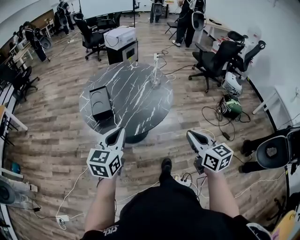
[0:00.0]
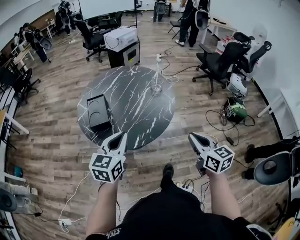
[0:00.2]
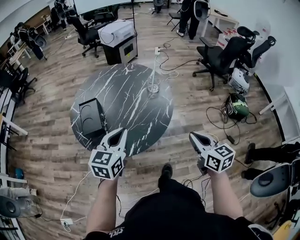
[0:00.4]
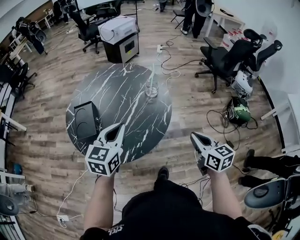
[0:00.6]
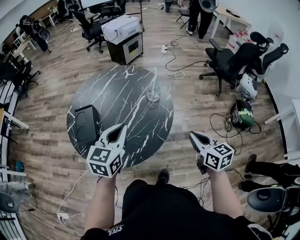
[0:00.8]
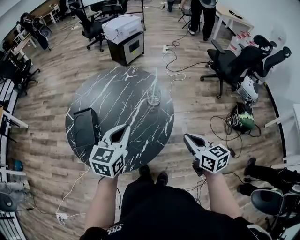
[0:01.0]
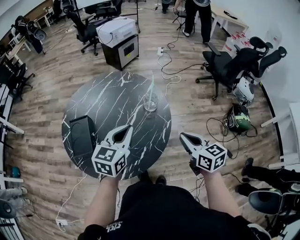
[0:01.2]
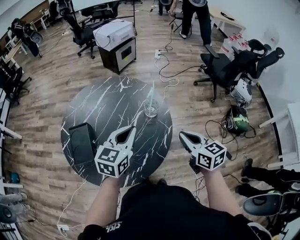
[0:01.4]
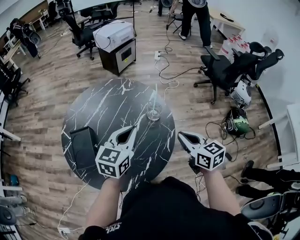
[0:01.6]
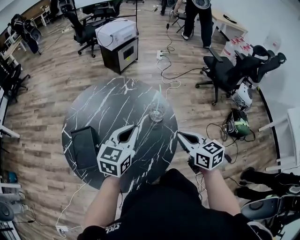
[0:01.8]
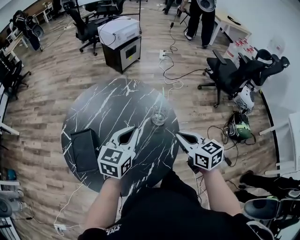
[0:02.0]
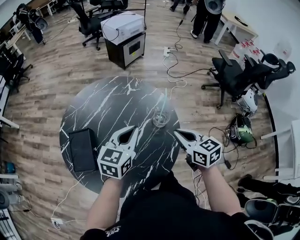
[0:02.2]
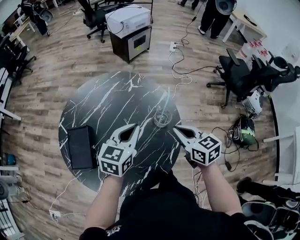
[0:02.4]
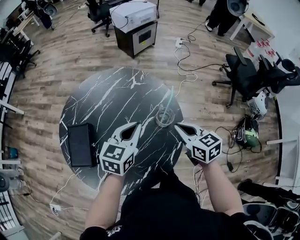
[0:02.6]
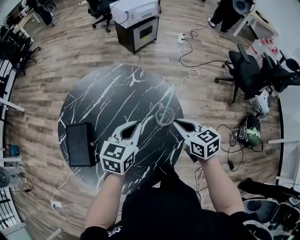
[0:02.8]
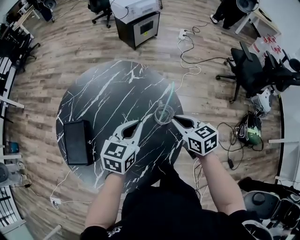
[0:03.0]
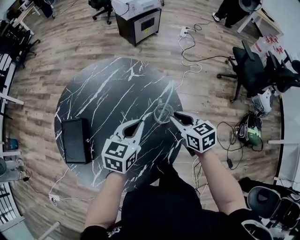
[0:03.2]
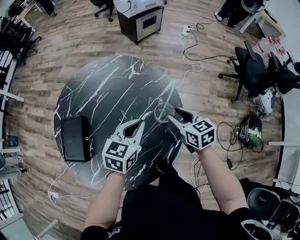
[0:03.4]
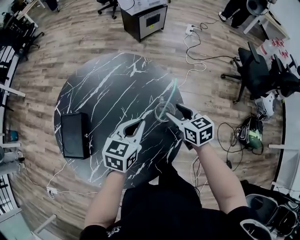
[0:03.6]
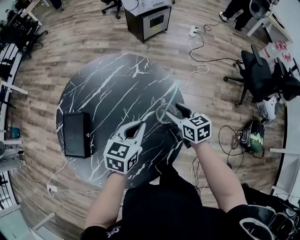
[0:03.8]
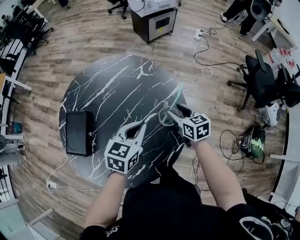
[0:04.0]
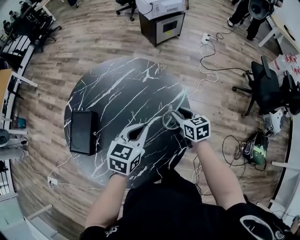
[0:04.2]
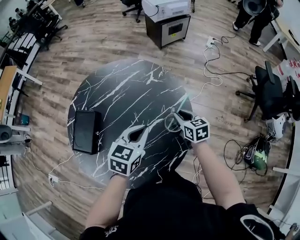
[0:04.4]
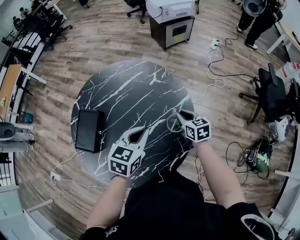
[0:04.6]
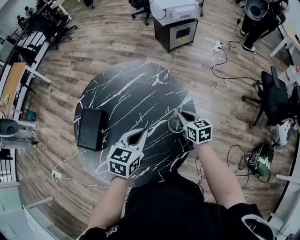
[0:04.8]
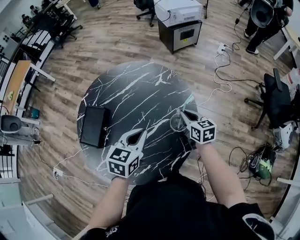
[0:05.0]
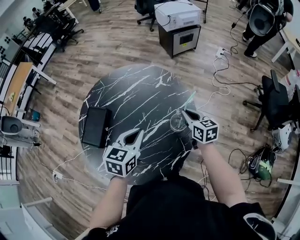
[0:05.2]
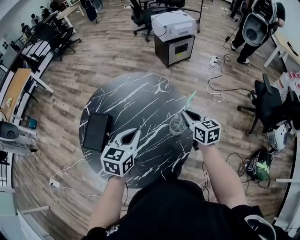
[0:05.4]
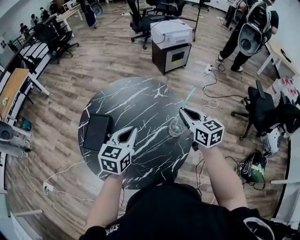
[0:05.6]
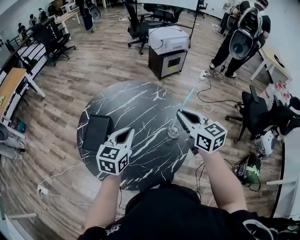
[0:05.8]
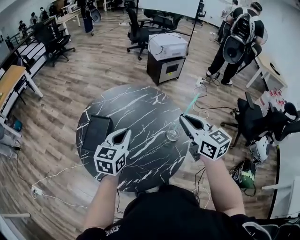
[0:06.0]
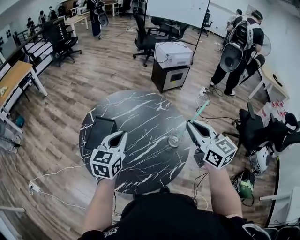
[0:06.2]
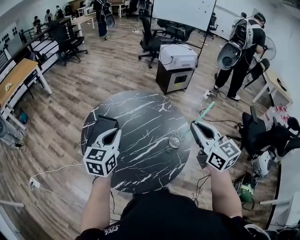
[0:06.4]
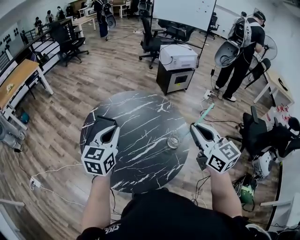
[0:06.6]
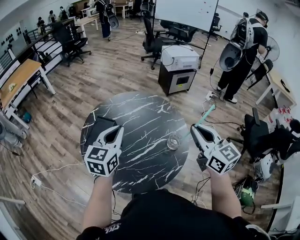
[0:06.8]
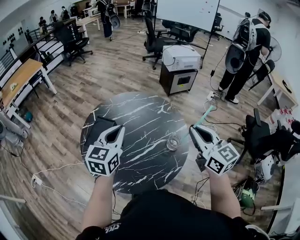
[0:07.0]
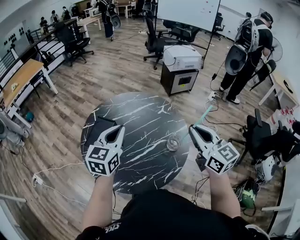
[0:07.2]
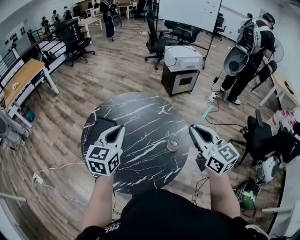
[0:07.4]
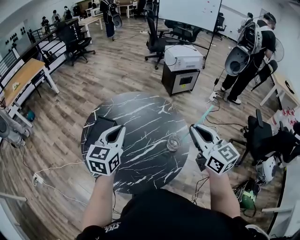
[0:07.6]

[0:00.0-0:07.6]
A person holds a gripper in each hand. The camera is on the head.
0:00.0 to 0:01.6: Both grippers are carried forward, approximately 40 cm.
0:01.6 to 0:03.0: Both grippers move forward and downward, roughly 20 cm.
0:03.0 to 0:04.6: The right gripper shifts about 10 cm forward and downward, and opens, then closes once more.
0:04.6 to 0:06.0: The left gripper goes about 20 cm to the left and upward. Meanwhile the right gripper moves upward, about 30 cm, and changes its angle by about 30 degrees.
0:06.0 to 0:07.6: The right gripper travels to the right by some 5 cm. The left gripper moves upward, roughly 5 cm.

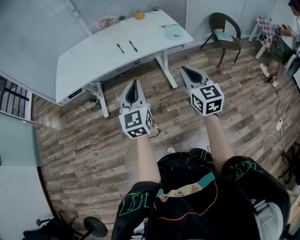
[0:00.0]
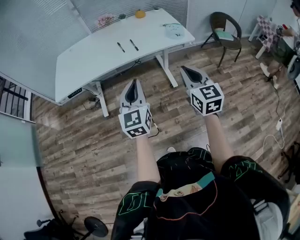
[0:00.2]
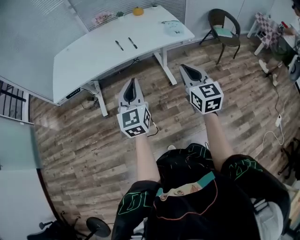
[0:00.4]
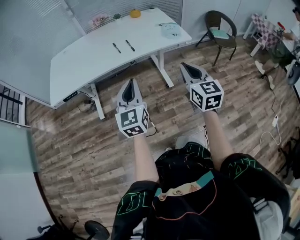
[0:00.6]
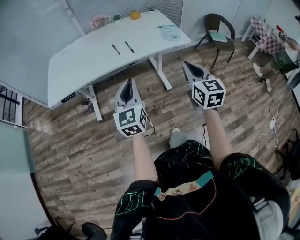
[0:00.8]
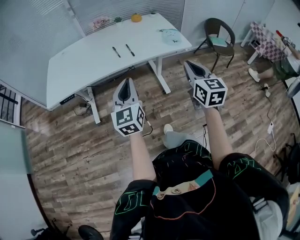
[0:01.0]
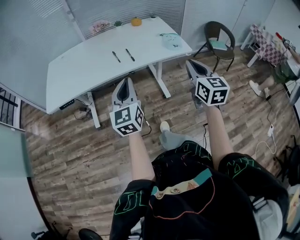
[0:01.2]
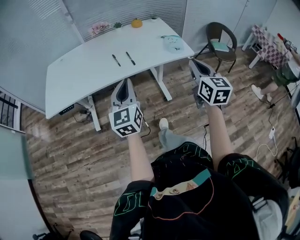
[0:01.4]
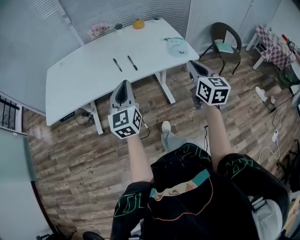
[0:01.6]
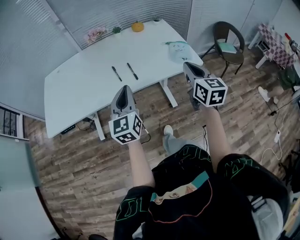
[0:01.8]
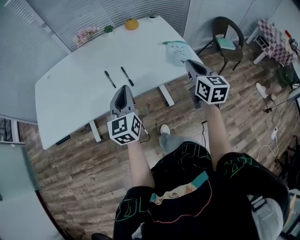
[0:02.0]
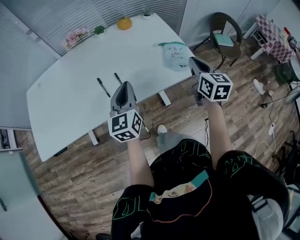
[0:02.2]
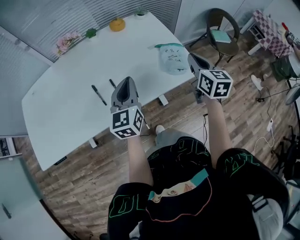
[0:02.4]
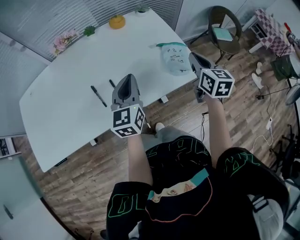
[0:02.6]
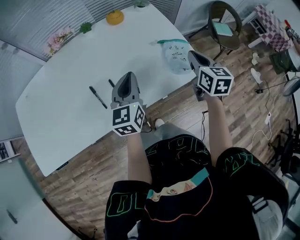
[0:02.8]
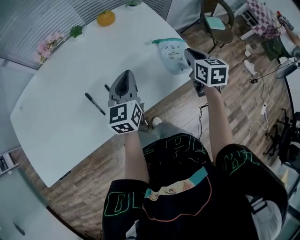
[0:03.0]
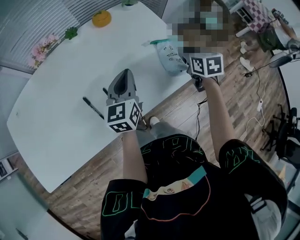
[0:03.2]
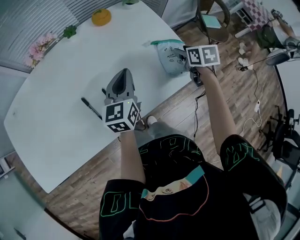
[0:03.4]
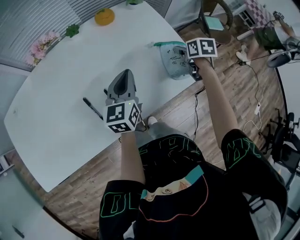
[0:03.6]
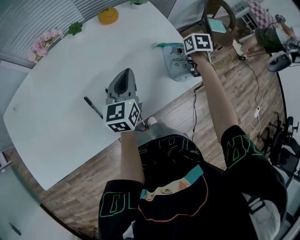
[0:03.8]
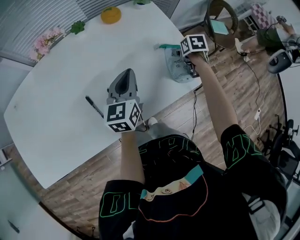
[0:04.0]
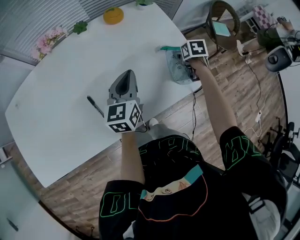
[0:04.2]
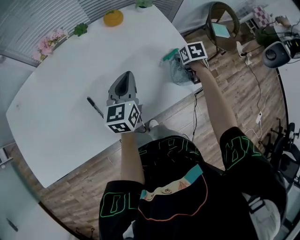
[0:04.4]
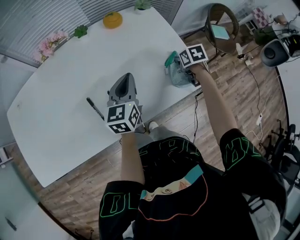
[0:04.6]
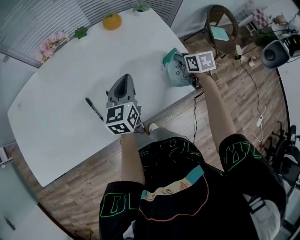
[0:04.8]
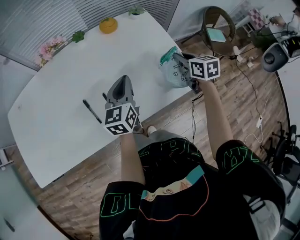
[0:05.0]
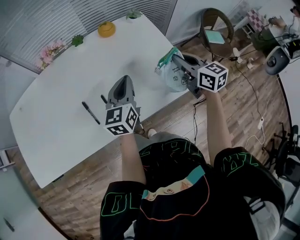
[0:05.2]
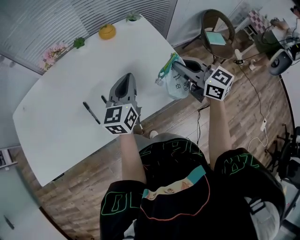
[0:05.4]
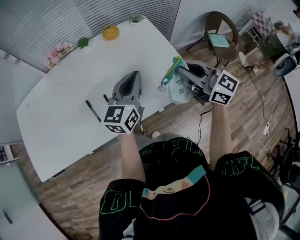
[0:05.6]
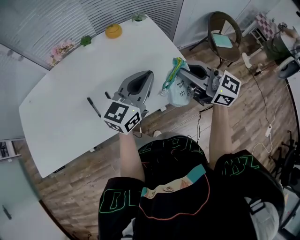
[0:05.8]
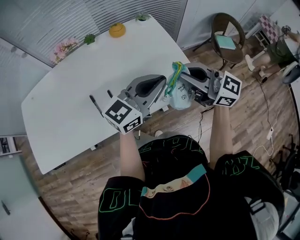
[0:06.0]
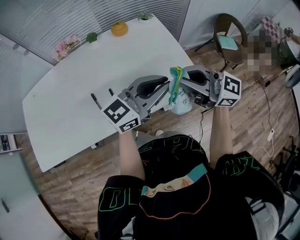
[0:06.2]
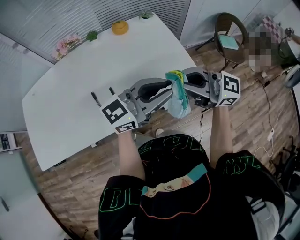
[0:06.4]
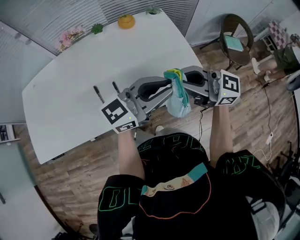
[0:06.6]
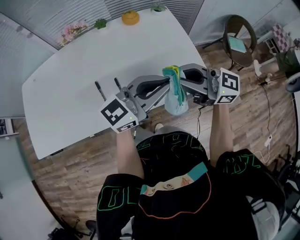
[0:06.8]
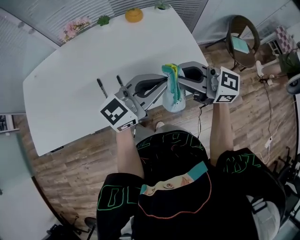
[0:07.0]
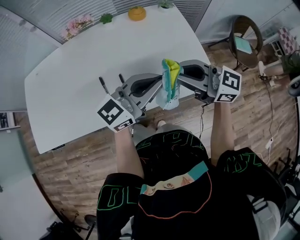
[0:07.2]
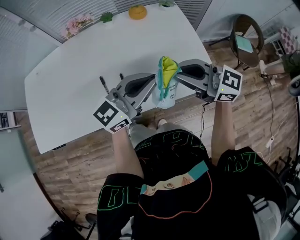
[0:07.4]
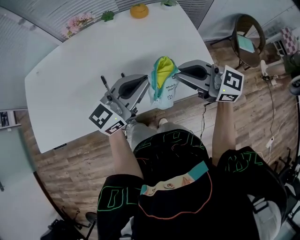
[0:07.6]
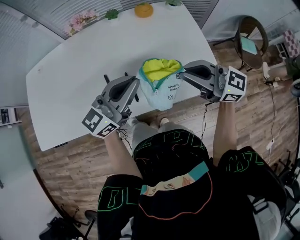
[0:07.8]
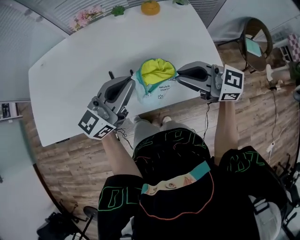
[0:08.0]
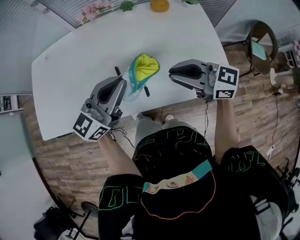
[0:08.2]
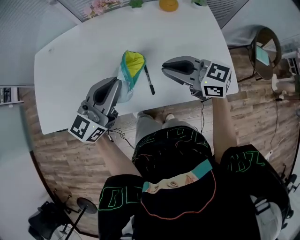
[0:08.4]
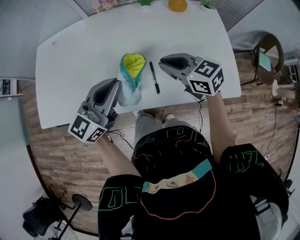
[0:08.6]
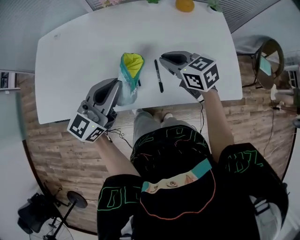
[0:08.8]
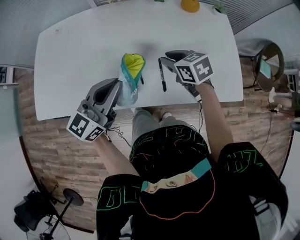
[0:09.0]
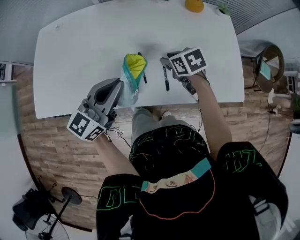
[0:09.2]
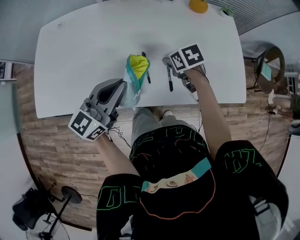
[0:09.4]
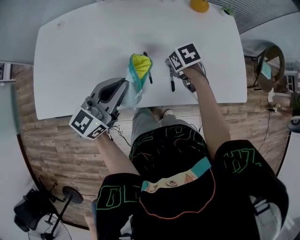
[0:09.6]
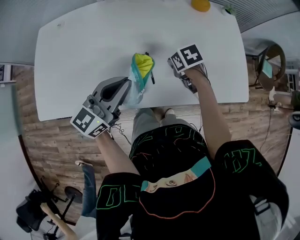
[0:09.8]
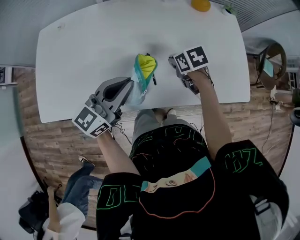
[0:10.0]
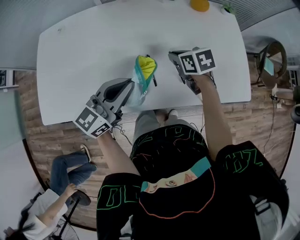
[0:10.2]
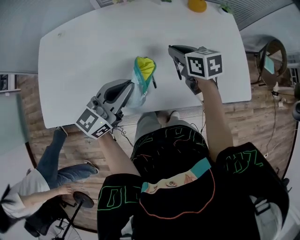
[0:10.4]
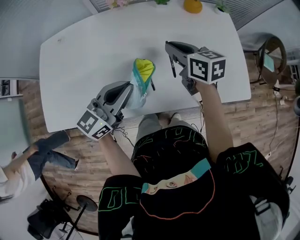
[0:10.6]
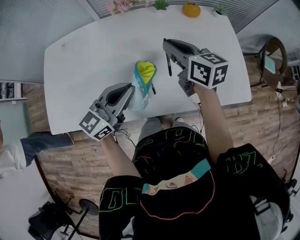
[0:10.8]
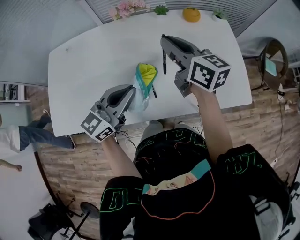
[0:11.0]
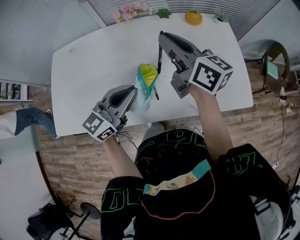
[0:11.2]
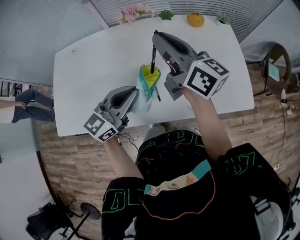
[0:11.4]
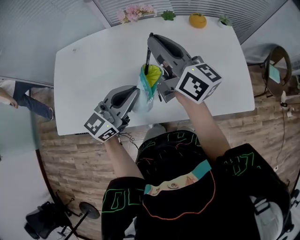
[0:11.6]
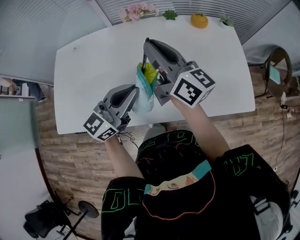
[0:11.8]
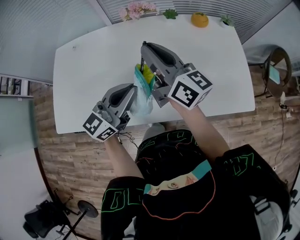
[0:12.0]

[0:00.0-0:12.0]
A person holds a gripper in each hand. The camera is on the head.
0:00.0 to 0:01.6: Both grippers travel together forward, approximately 20 cm.
0:01.6 to 0:03.0: The right gripper is displaced forward and downward by roughly 35 cm, and changes its angle by some 30 degrees; the left gripper goes some 35 cm forward, and turns by roughly 20 degrees.
0:03.0 to 0:04.4: The left gripper moves approximately 5 cm, while the right gripper heads downward and forward, covering about 15 cm, angles its fingers downward, by about 30 degrees, and opens up.
0:04.4 to 0:06.0: The left gripper is displaced to the right, upward and backward by approximately 20 cm, and turns by about 40 degrees, while the right gripper goes about 35 cm upward and backward, tilts its fingers some 70 degrees upward, and closes its fingers.
0:06.0 to 0:07.6: The right gripper moves some 10 cm. The left gripper changes place by roughly 15 cm.
0:07.6 to 0:09.0: The right gripper changes place by about 25 cm, and angles its fingers downward, by roughly 40 degrees, while the left gripper changes place by approximately 25 cm, and rotates approximately 20 degrees.
0:09.0 to 0:10.4: The right gripper reaches about 10 cm downward, then returns.
0:10.4 to 0:12.0: The right gripper travels upward by approximately 20 cm, and points its fingers about 50 degrees further upward.

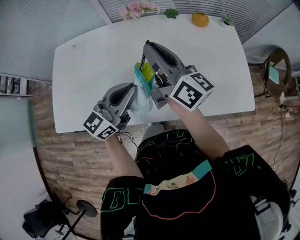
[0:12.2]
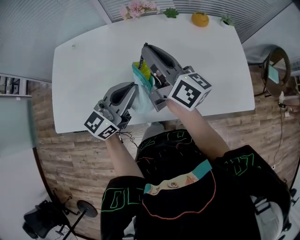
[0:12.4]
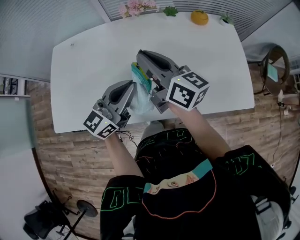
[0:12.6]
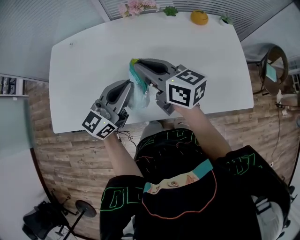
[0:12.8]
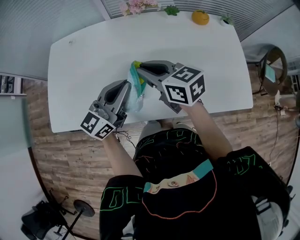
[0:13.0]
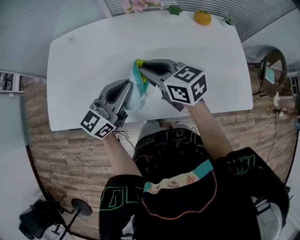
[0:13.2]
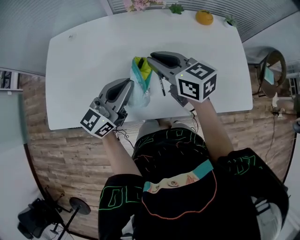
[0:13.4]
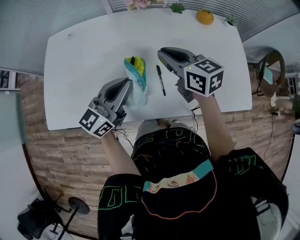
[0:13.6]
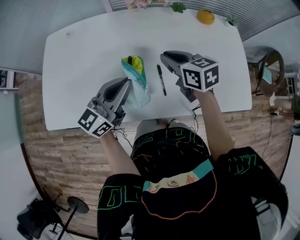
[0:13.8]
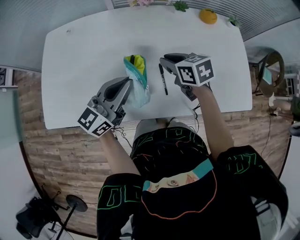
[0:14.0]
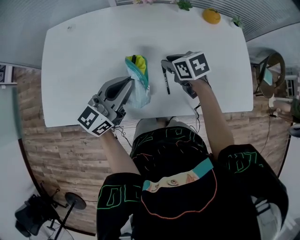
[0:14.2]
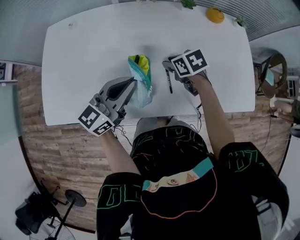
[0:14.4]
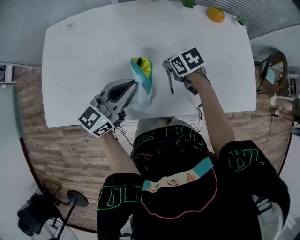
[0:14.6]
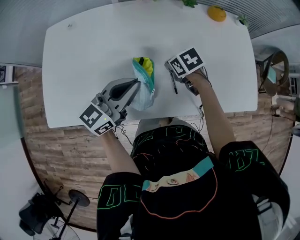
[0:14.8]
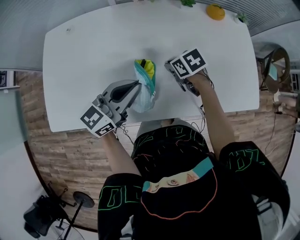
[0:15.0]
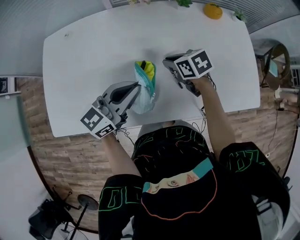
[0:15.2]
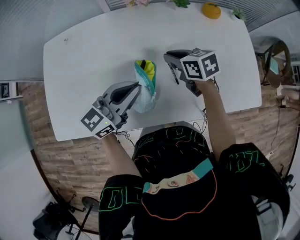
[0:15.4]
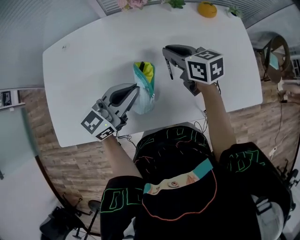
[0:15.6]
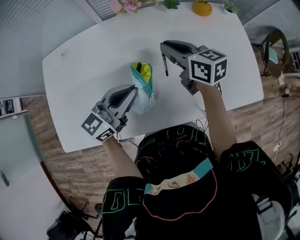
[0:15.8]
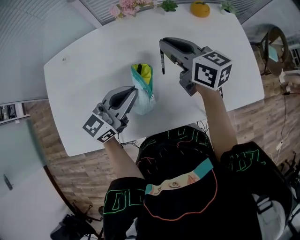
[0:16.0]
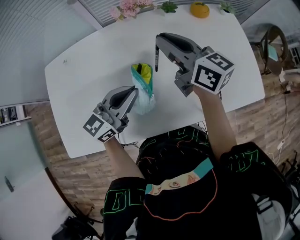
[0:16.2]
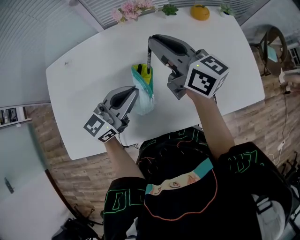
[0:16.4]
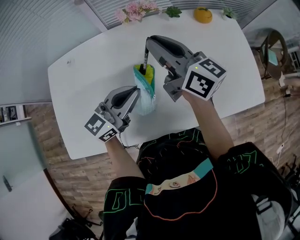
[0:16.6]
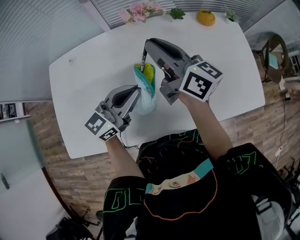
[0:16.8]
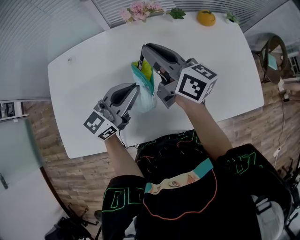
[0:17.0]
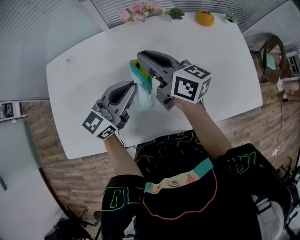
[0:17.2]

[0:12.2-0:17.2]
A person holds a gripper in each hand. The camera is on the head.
0:12.2 to 0:13.8: The right gripper shifts about 15 cm downward, and tilts its fingers about 40 degrees downward. The left gripper goes approximately 5 cm to the left.
0:13.8 to 0:15.6: The left gripper shifts by roughly 5 cm, while the right gripper moves forward, roughly 5 cm, and reaches about 15 cm downward, then returns.
0:15.6 to 0:17.2: The right gripper travels upward and to the left by some 15 cm, and swivels some 30 degrees.
